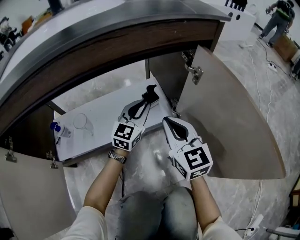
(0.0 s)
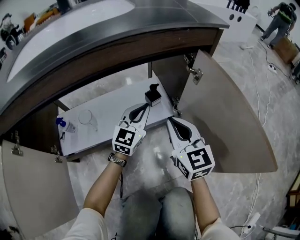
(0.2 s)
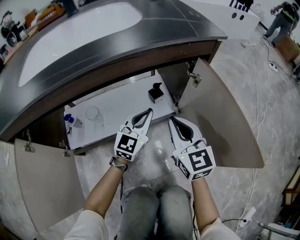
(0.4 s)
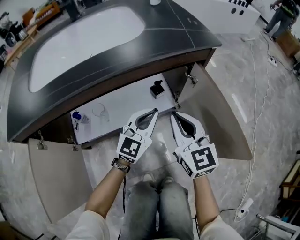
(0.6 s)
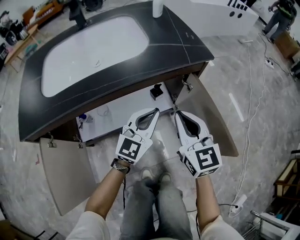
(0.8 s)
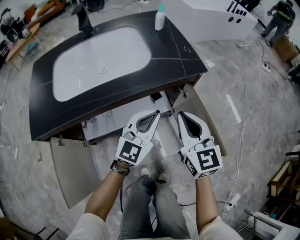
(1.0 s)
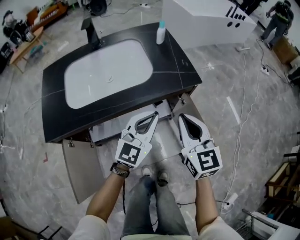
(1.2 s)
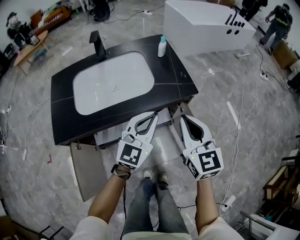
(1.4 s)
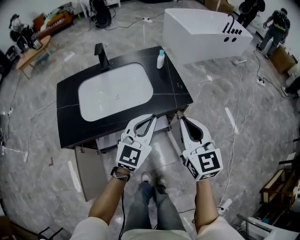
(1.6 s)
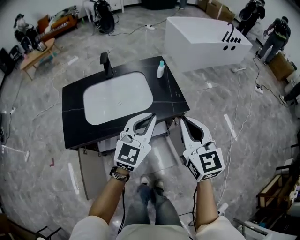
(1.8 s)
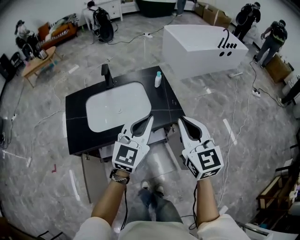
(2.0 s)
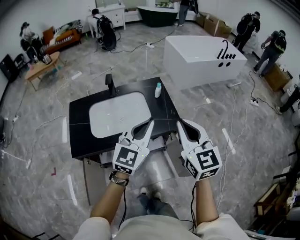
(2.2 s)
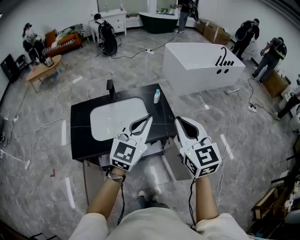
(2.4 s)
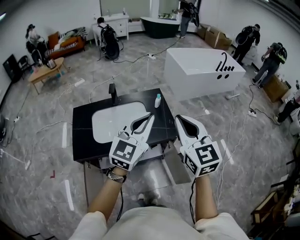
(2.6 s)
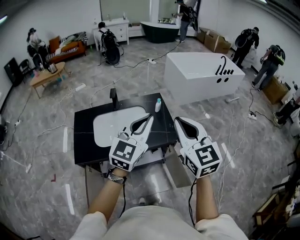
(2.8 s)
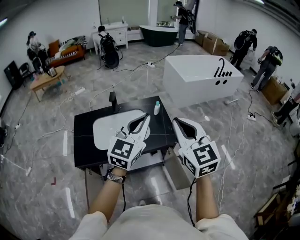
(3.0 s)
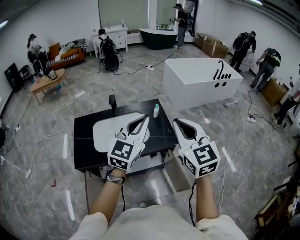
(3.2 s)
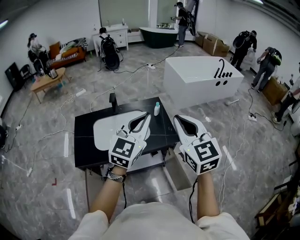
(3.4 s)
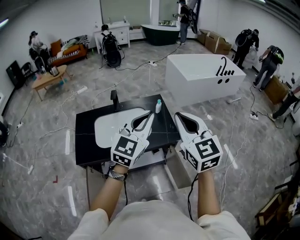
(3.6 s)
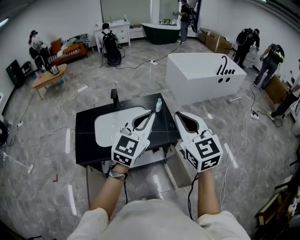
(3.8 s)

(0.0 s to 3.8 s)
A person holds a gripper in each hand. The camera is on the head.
0.0 s - 1.2 s: The two grippers go about 40 cm upward.
1.2 s - 2.6 s: Both grippers move upward, about 40 cm.
2.6 s - 3.8 s: There are only small adjustments of the grippers.

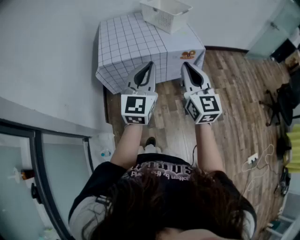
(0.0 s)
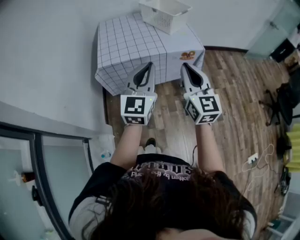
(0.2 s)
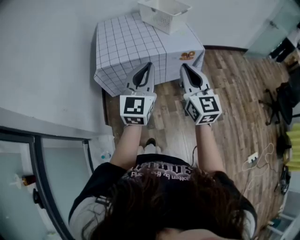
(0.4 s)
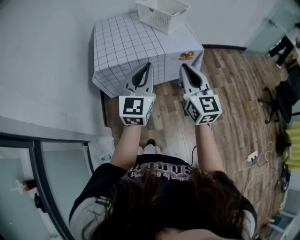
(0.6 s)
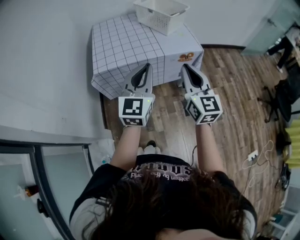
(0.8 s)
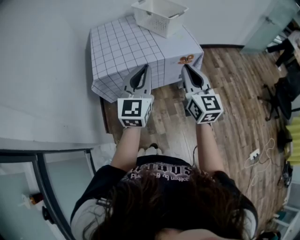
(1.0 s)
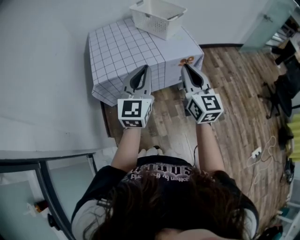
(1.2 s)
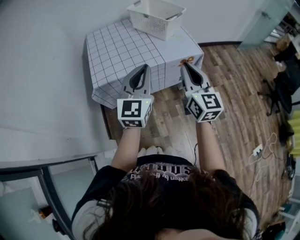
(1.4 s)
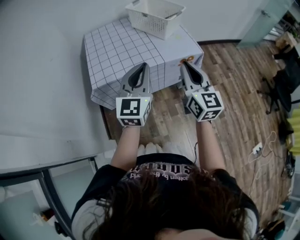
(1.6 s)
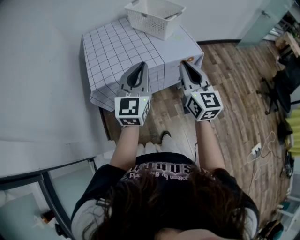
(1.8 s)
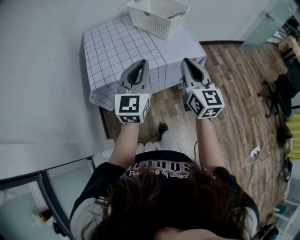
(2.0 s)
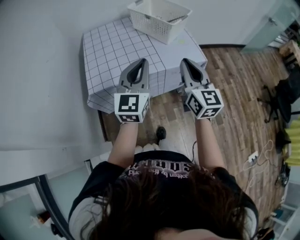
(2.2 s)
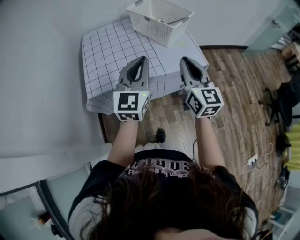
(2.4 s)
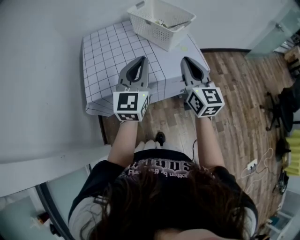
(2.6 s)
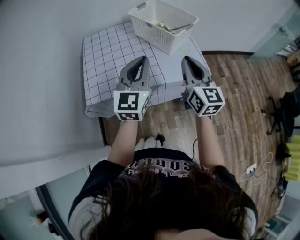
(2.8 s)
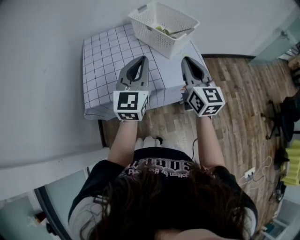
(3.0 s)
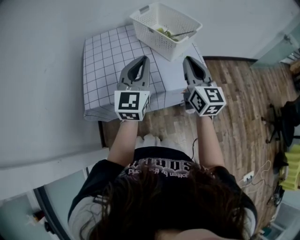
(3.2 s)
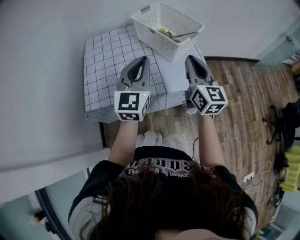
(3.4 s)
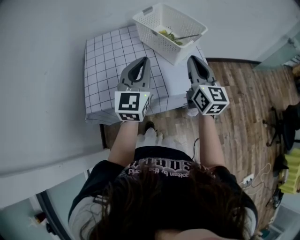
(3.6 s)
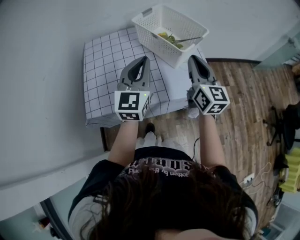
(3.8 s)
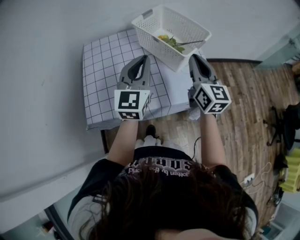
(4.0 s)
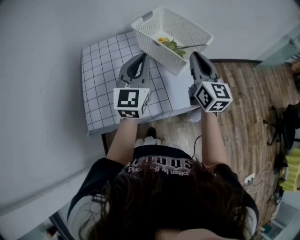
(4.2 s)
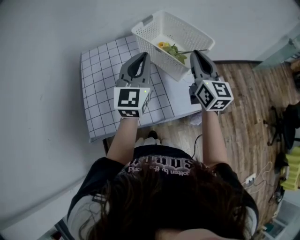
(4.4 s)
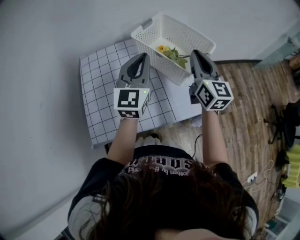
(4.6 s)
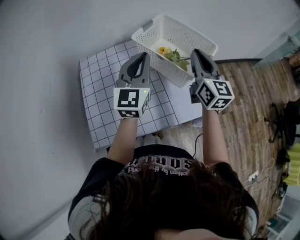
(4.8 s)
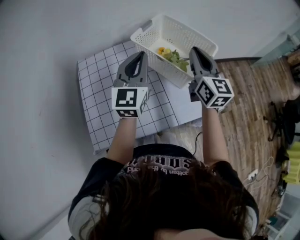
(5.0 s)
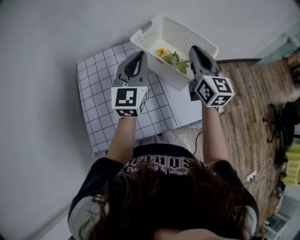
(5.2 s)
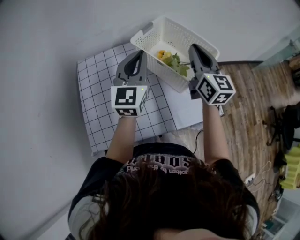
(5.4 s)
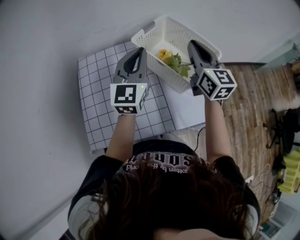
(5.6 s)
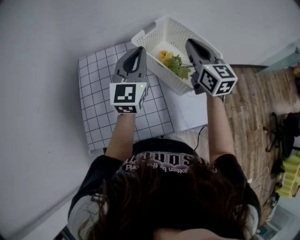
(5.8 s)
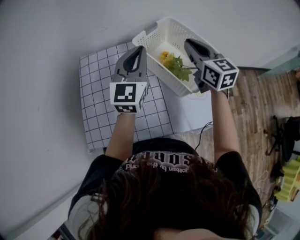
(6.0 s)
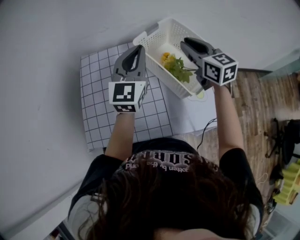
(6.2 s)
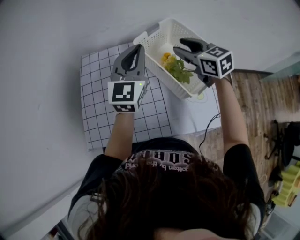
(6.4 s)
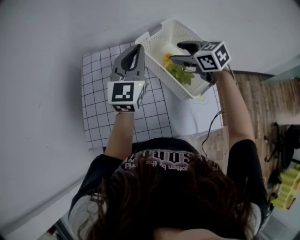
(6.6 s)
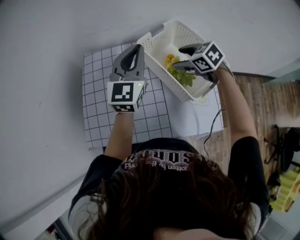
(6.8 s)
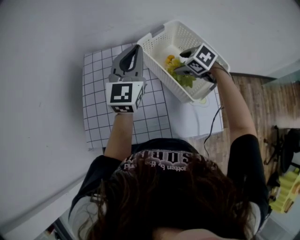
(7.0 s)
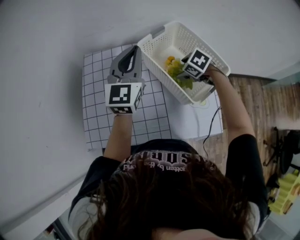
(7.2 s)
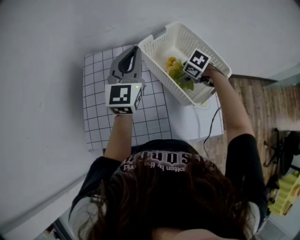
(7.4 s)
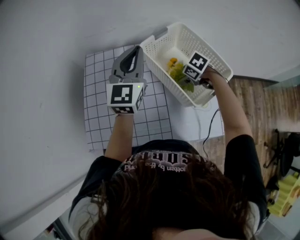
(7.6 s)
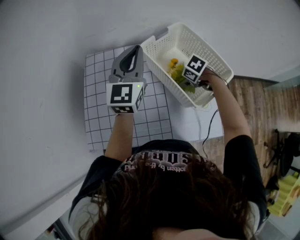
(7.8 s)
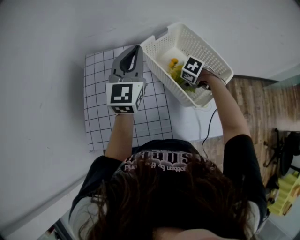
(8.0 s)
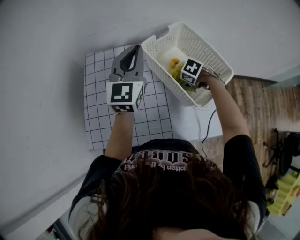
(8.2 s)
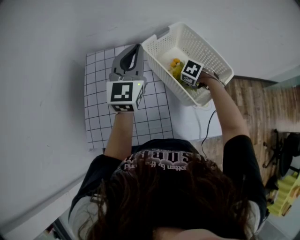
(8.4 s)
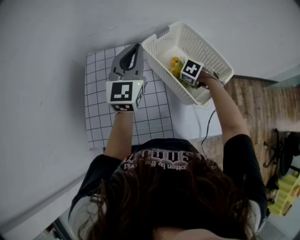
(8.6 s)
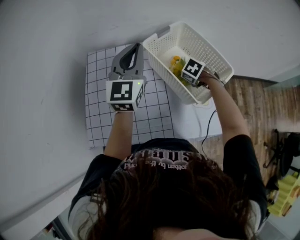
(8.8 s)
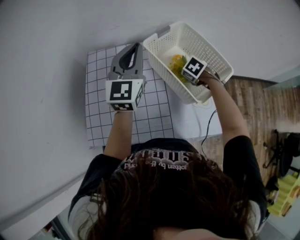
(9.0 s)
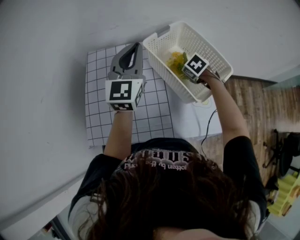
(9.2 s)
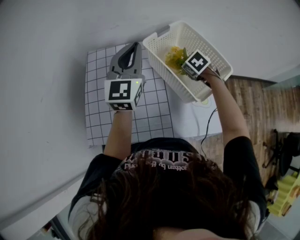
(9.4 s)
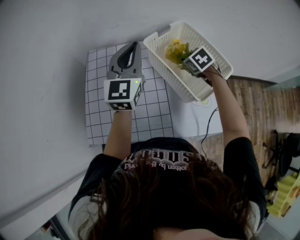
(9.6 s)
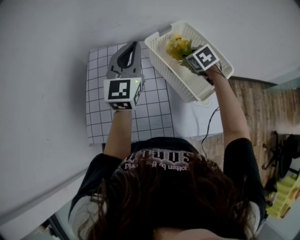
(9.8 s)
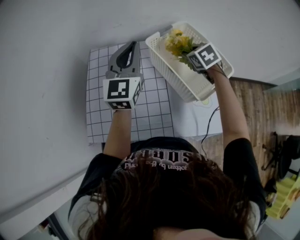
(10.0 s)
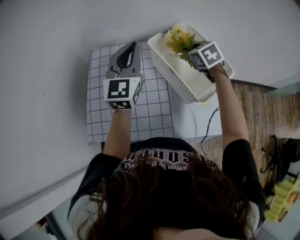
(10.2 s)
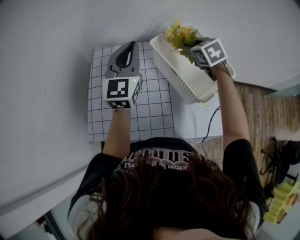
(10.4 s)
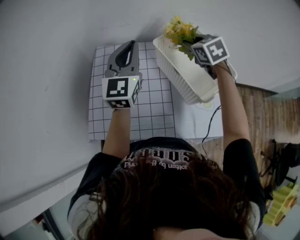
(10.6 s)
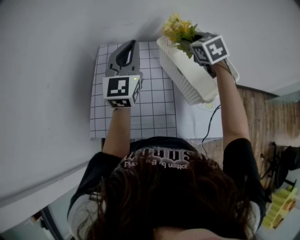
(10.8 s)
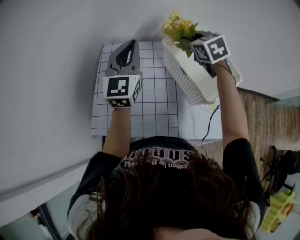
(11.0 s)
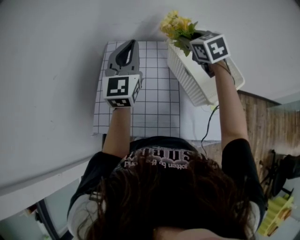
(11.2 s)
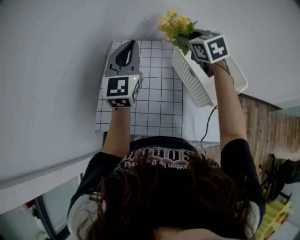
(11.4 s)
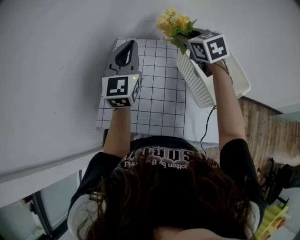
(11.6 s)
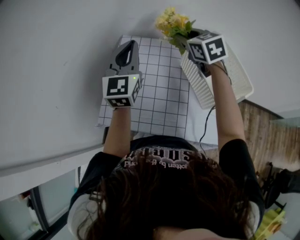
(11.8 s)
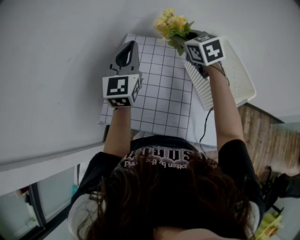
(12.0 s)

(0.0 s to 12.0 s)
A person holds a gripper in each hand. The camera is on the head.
0.0 s - 1.6 s: The two grippers go about 15 cm forward.
1.6 s - 3.0 s: The grippers both shift forward by some 20 cm.
3.0 s - 4.4 s: The grippers both shift forward by about 20 cm.
4.4 s - 6.0 s: The two grippers go some 15 cm forward. The right gripper rotates some 20 degrees.
6.0 s - 7.6 s: The right gripper moves downward, approximately 25 cm, points its fingers some 60 degrees further downward, and opens its fingers.
7.6 s - 9.0 s: The right gripper closes up.
9.0 s - 10.4 s: The right gripper heads upward, covering approximately 15 cm, and changes its angle by some 30 degrees.
10.4 s - 12.0 s: The grippers both shift to the left by roughly 20 cm. The right gripper swivels roughly 20 degrees.

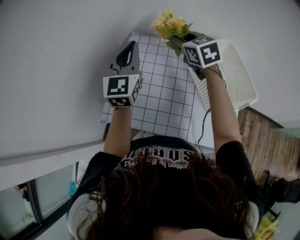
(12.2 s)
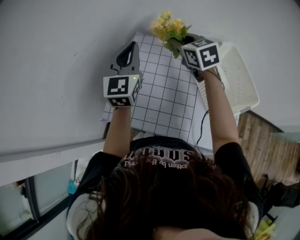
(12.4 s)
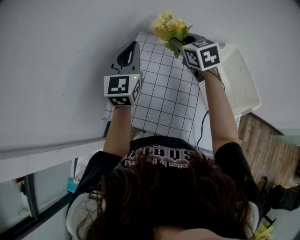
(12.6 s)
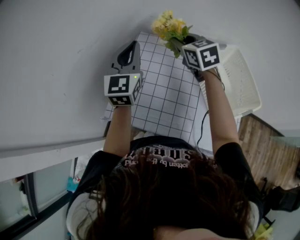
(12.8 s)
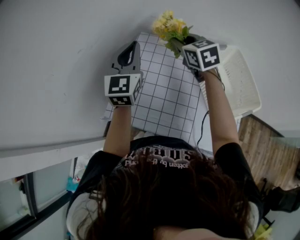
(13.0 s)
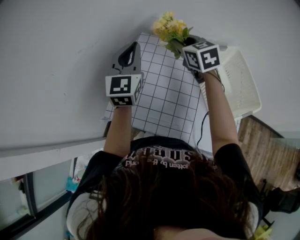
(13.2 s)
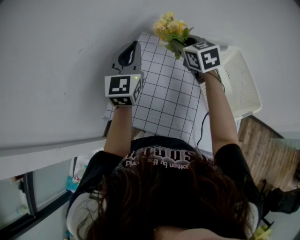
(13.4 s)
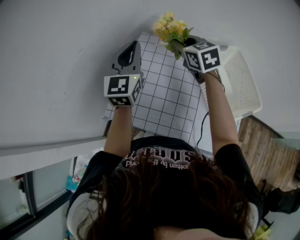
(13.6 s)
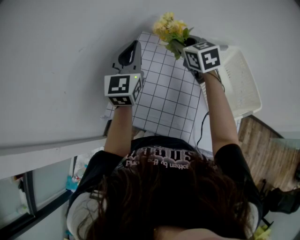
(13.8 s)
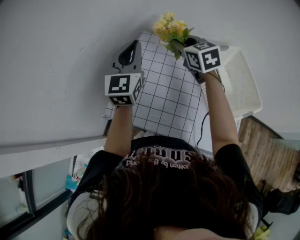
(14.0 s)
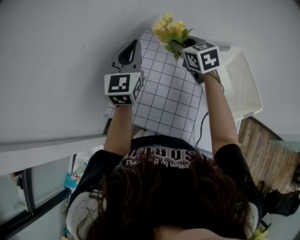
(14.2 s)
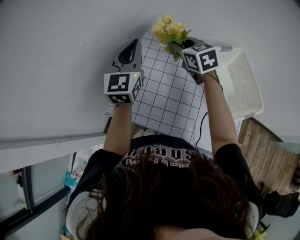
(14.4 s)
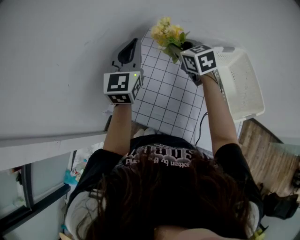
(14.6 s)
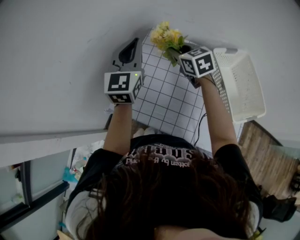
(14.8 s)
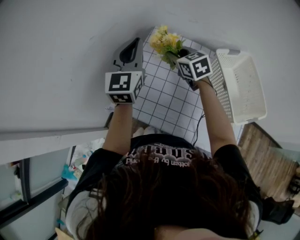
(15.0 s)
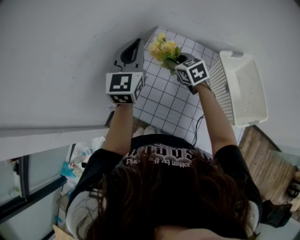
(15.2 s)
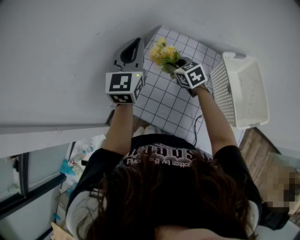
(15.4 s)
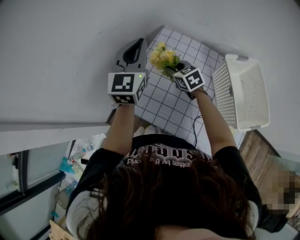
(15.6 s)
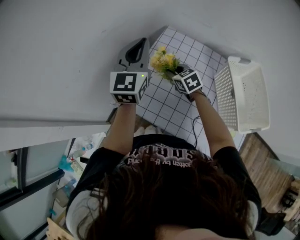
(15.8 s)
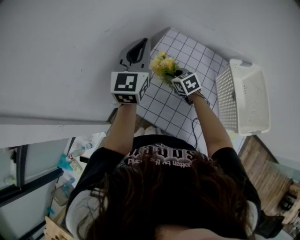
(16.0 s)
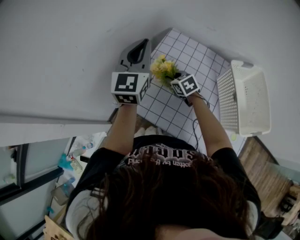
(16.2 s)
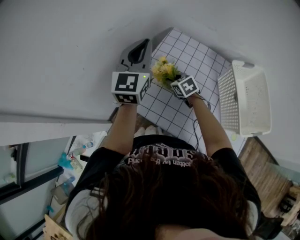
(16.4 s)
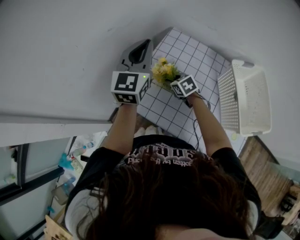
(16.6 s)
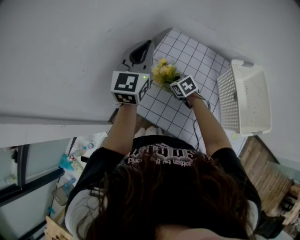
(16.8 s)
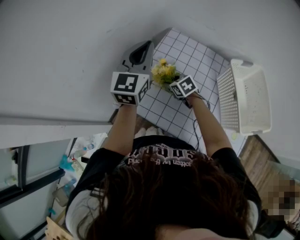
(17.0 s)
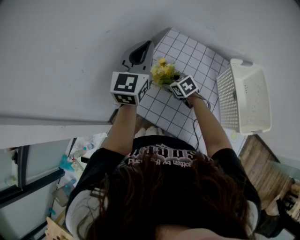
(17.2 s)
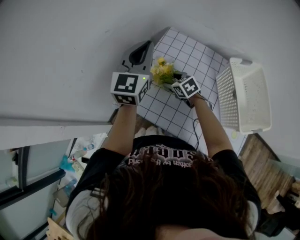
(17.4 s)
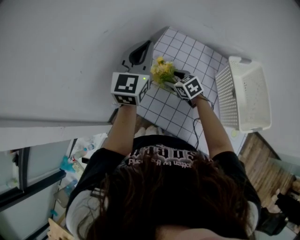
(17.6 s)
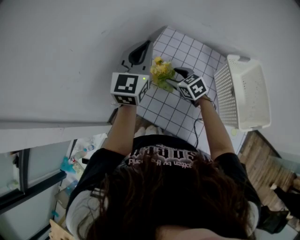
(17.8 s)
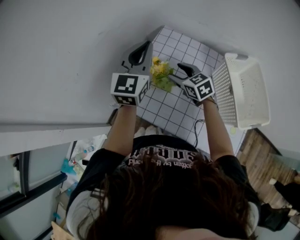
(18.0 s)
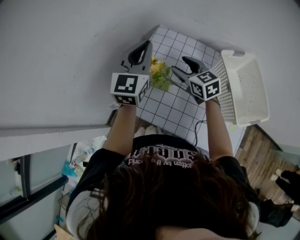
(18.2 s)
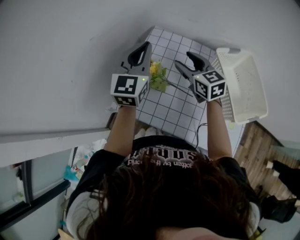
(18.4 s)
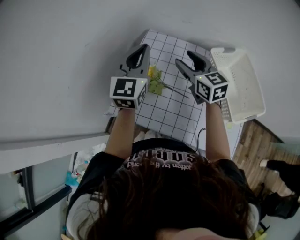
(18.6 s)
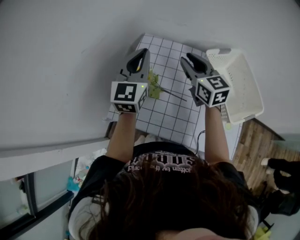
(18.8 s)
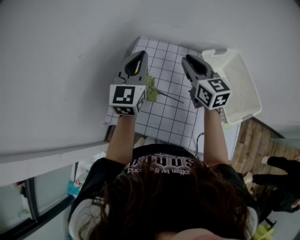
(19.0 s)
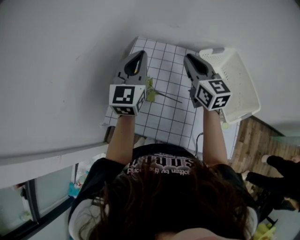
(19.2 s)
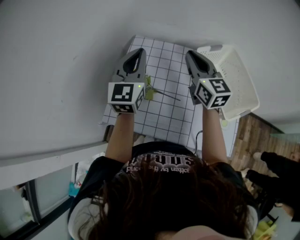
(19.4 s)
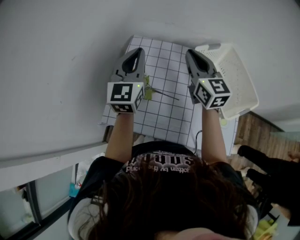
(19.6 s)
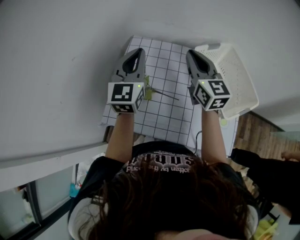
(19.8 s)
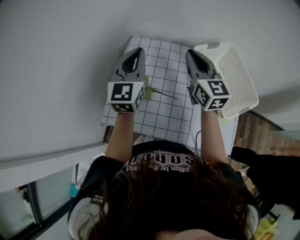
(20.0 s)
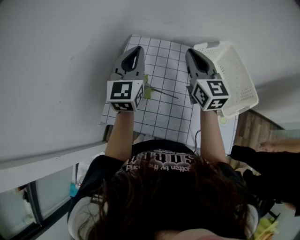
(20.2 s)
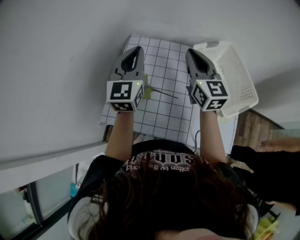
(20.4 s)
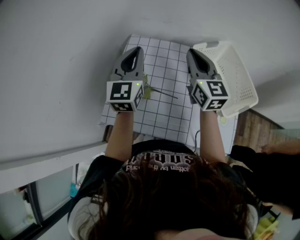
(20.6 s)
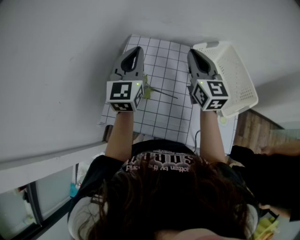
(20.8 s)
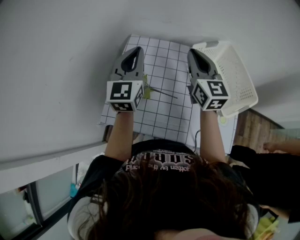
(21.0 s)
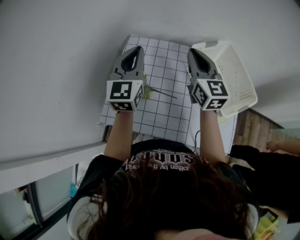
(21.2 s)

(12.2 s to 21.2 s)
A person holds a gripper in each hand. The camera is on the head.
12.2 s - 13.8 s: There are only small adjustments of the grippers.
13.8 s - 15.2 s: The left gripper heads to the left, covering about 5 cm. Meanwhile the right gripper moves downward and to the left, about 15 cm.
15.2 s - 16.6 s: The right gripper goes approximately 15 cm downward and to the left.
16.6 s - 18.2 s: The right gripper moves upward and to the right, about 20 cm, changes its angle by roughly 30 degrees, and opens.
18.2 s - 19.8 s: The left gripper is displaced to the right by about 10 cm. Meanwhile the right gripper travels to the right and upward by approximately 20 cm, rotates roughly 30 degrees, and closes its fingers.
19.8 s - 21.2 s: The grippers make only small movements.
